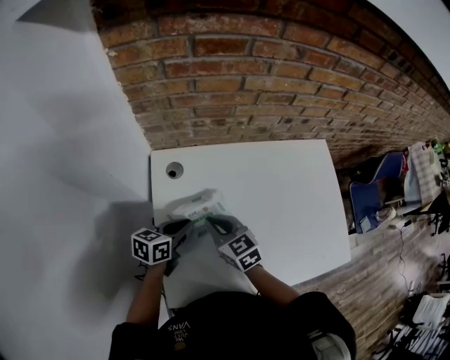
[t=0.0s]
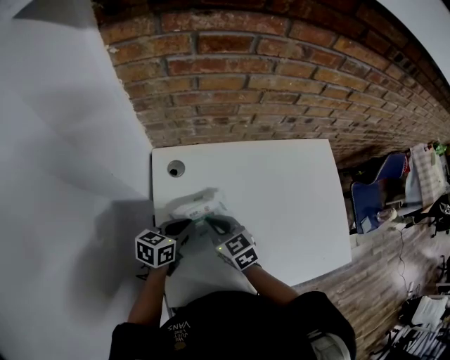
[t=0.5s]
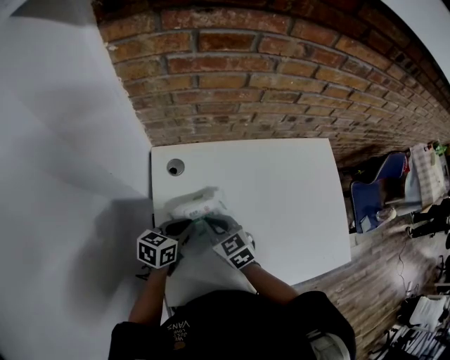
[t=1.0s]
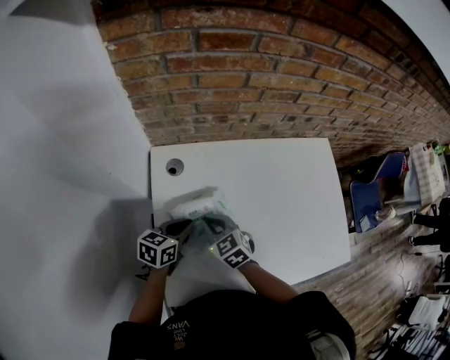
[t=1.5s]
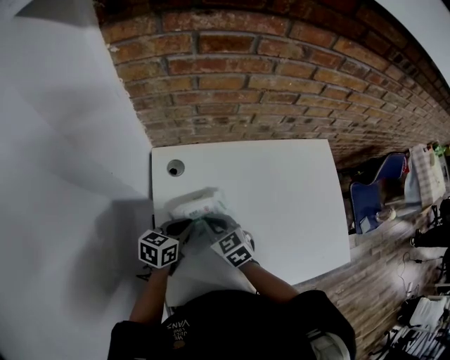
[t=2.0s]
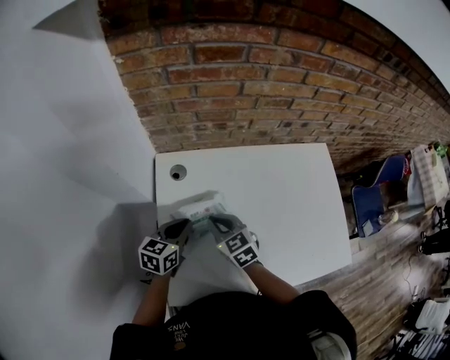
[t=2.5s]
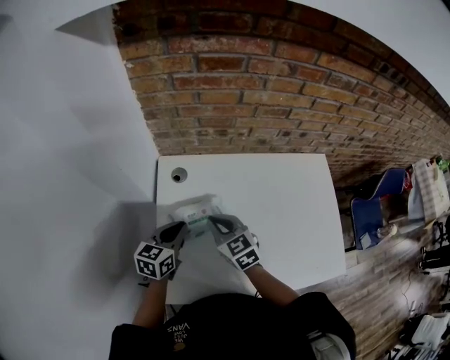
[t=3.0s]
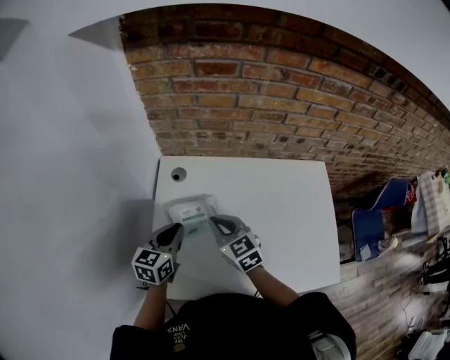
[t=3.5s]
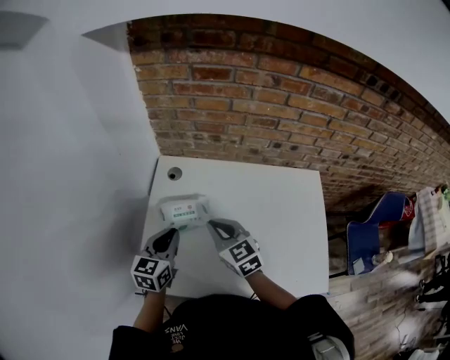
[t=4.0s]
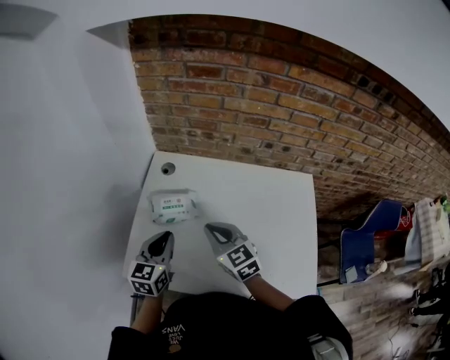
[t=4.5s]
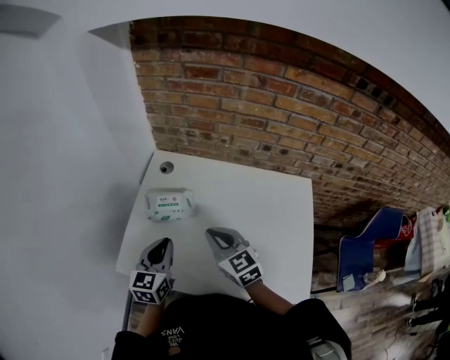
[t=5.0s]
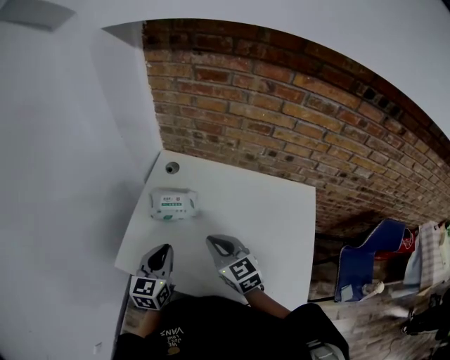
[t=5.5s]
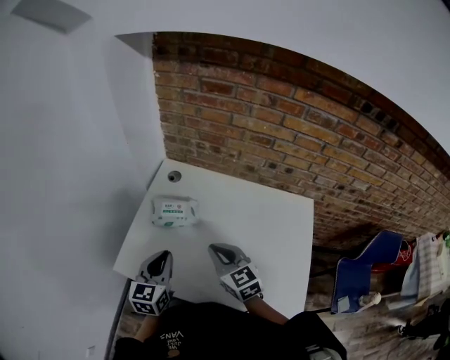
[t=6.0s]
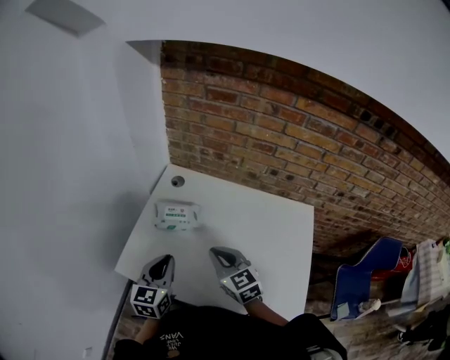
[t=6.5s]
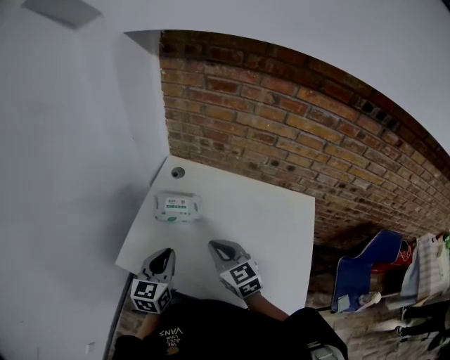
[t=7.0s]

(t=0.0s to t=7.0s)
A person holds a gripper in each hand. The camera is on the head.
t=0.0s - t=2.0s: The grippers stay close to where they were, moving slightly.
t=2.0s - t=3.5s: The left gripper heads upward, covering roughly 10 cm, and rotates about 30 degrees. Meanwhile the right gripper travels upward and to the right by roughly 10 cm.
t=3.5s - t=5.0s: The two grippers go roughly 15 cm backward and to the right. The left gripper rotates some 20 degrees.
t=5.0s - t=7.0s: The grippers stay close to where they were, moving slightly.

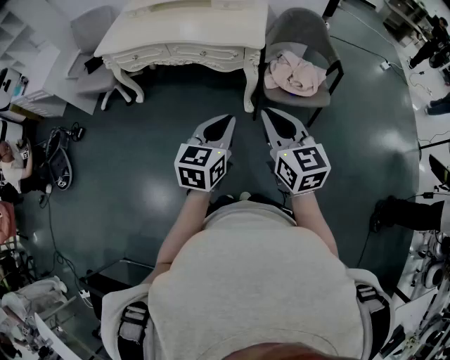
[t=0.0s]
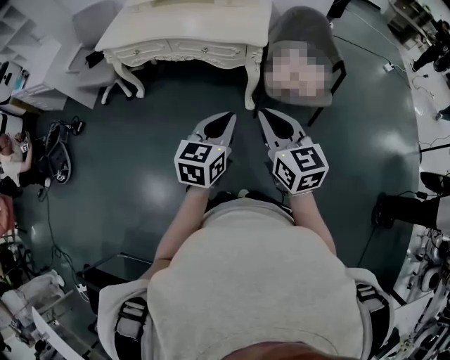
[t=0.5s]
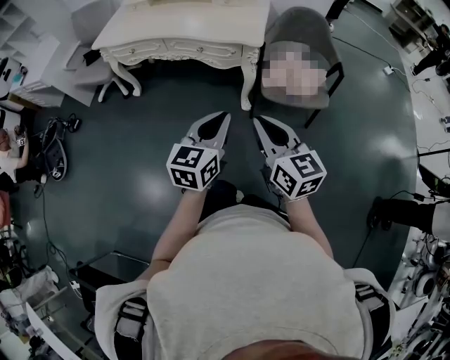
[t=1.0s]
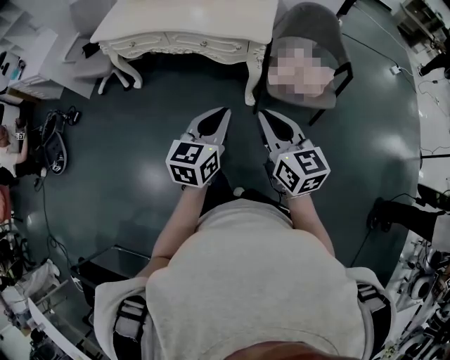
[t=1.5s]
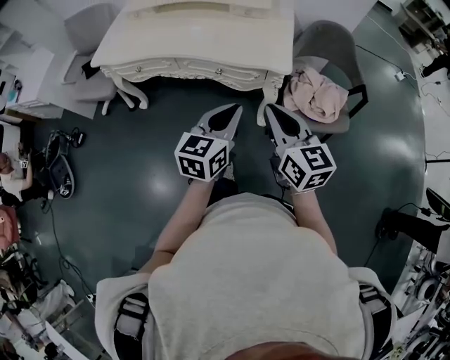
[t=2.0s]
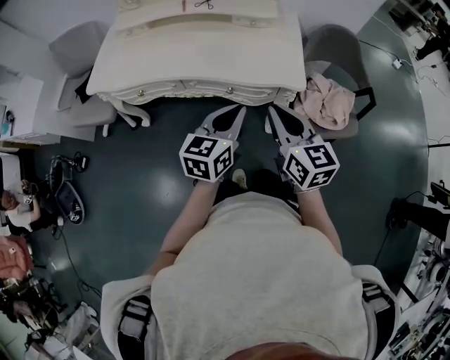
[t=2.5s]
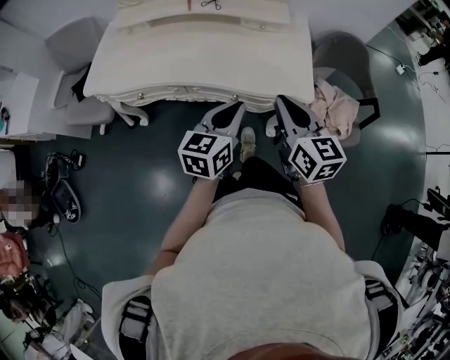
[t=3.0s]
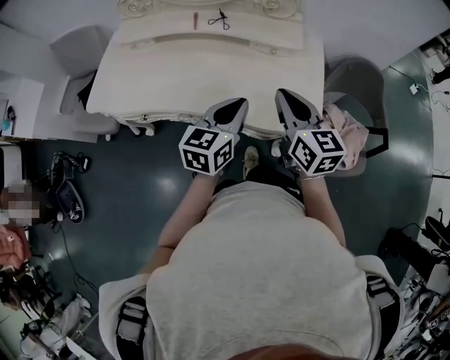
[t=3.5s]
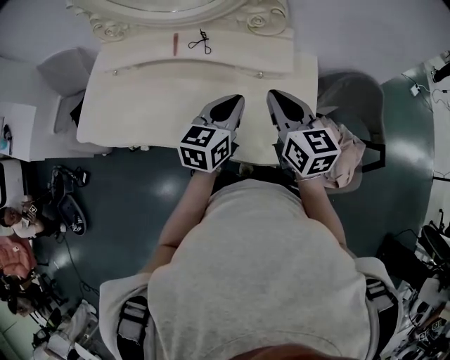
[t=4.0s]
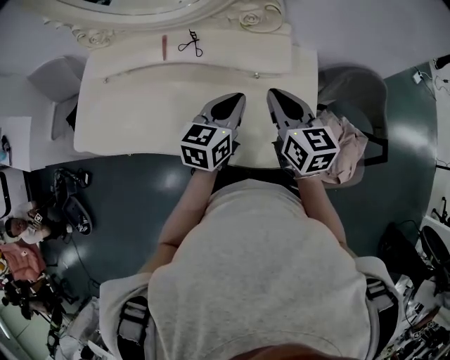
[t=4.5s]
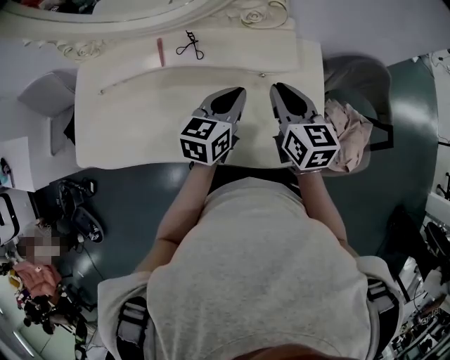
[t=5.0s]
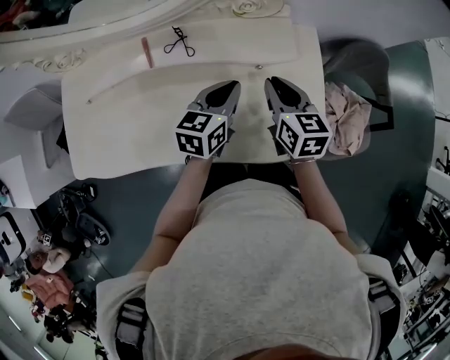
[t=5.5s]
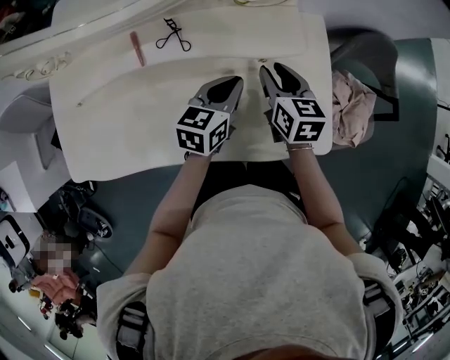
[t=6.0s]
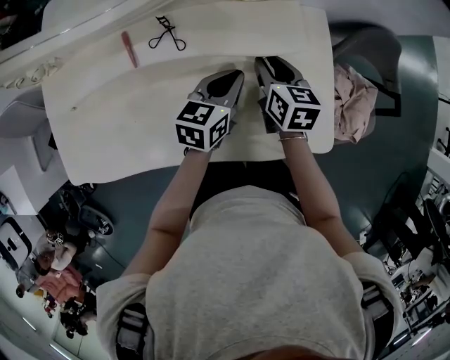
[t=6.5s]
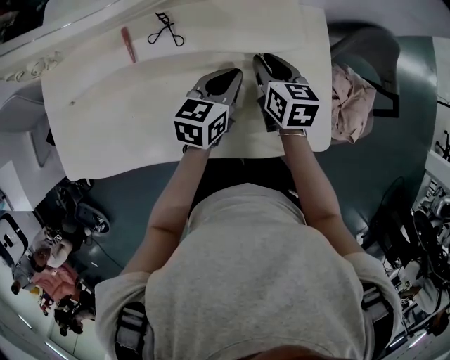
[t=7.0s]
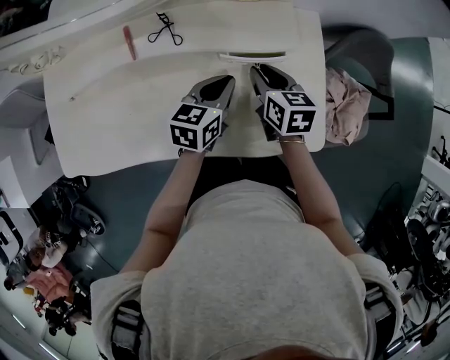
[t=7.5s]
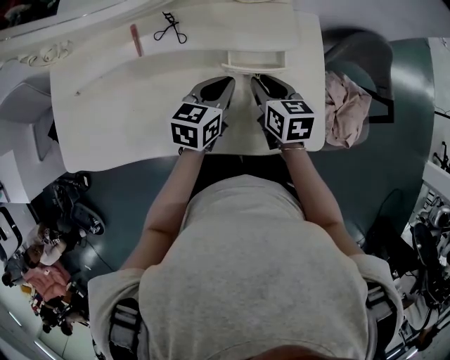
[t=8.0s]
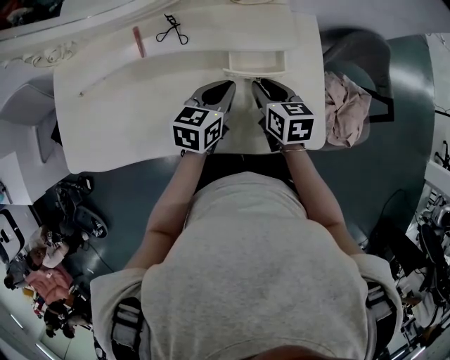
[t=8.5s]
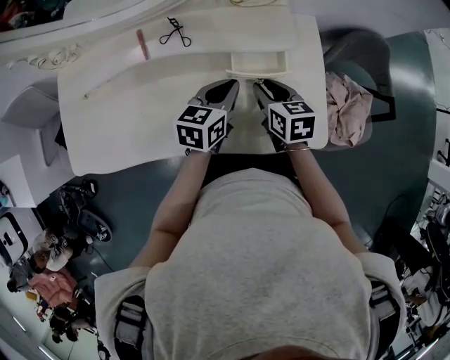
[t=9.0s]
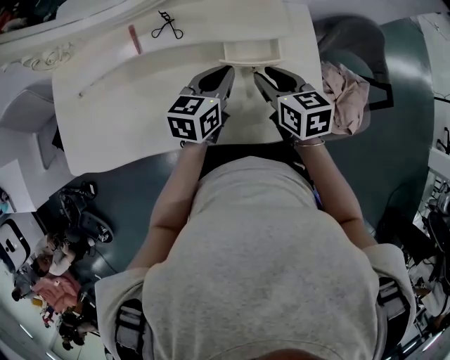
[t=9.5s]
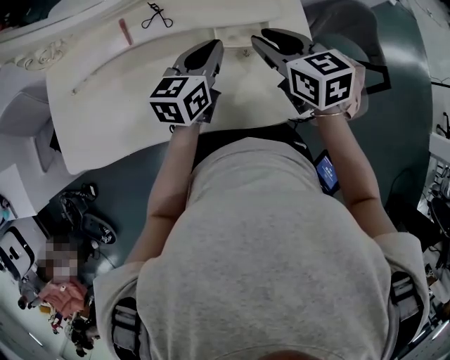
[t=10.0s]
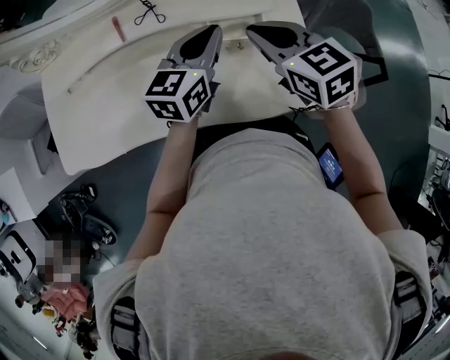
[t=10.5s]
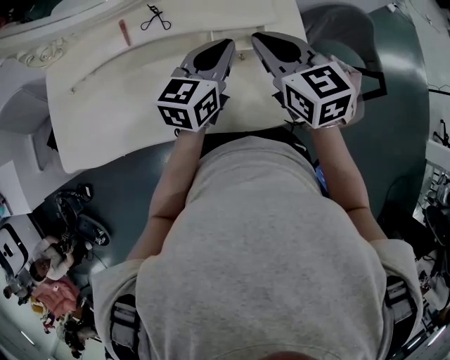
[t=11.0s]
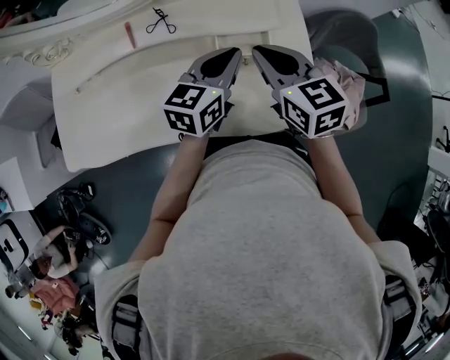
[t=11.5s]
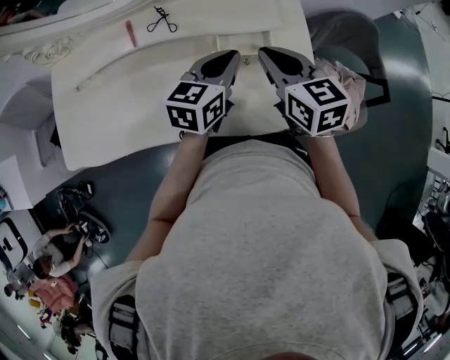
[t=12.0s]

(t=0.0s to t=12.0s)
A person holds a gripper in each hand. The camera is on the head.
t=0.0s - t=2.0s: The two grippers go roughly 20 cm forward.
t=2.0s - t=4.0s: Both grippers are carried forward, some 40 cm.
t=4.0s - t=6.0s: Both grippers move downward and forward, approximately 15 cm. The right gripper swivels about 30 degrees, and opens up; the left gripper changes its angle by roughly 20 degrees.
t=6.0s - t=8.0s: The right gripper moves approximately 5 cm.
t=8.0s - t=10.0s: The left gripper moves upward, about 5 cm. The right gripper moves upward, about 10 cm.
t=10.0s - t=12.0s: The right gripper closes up.

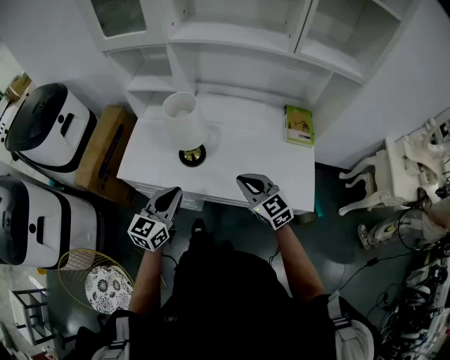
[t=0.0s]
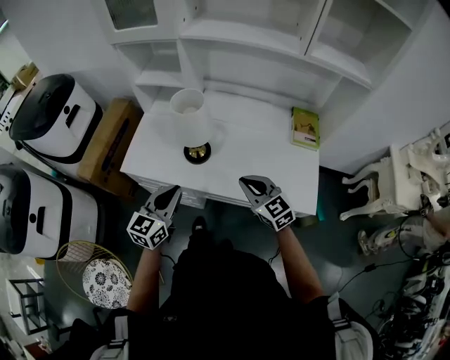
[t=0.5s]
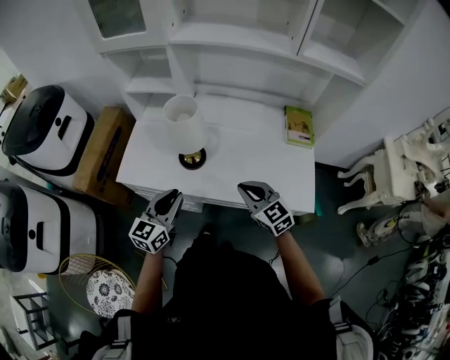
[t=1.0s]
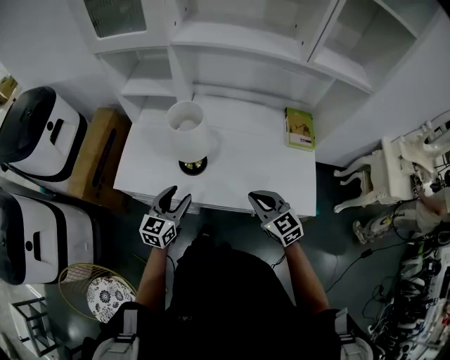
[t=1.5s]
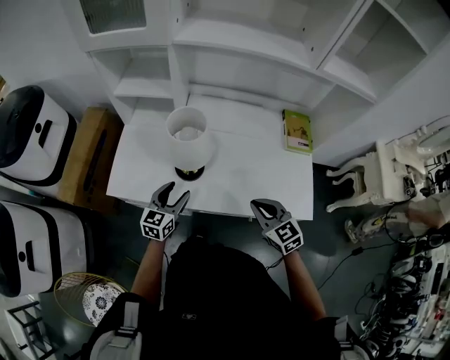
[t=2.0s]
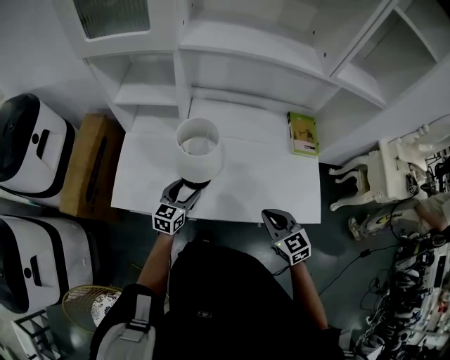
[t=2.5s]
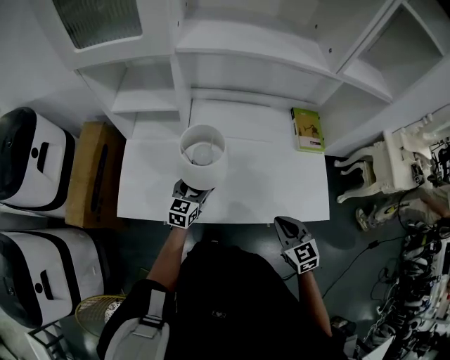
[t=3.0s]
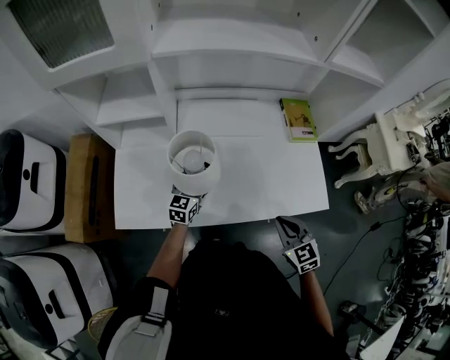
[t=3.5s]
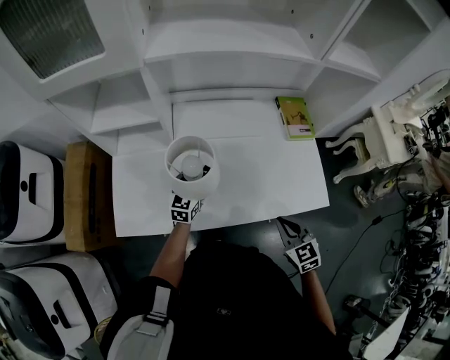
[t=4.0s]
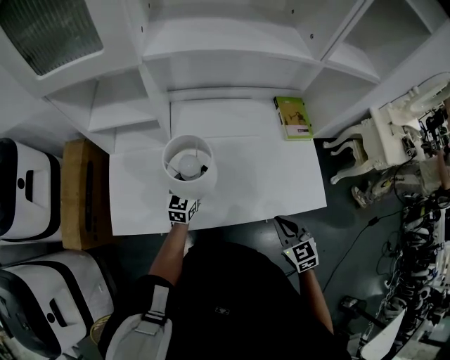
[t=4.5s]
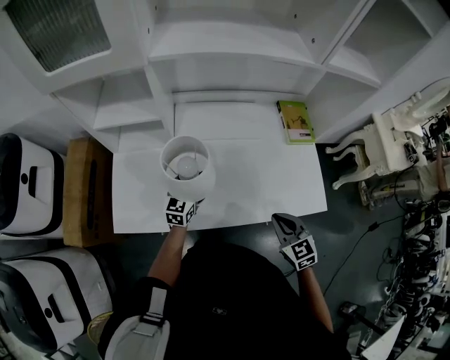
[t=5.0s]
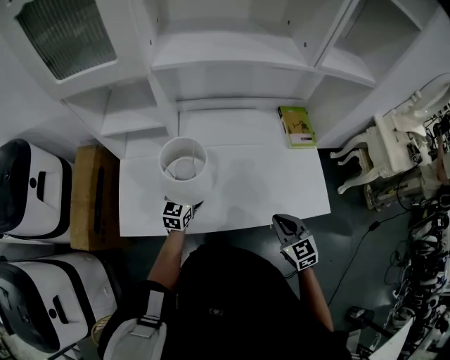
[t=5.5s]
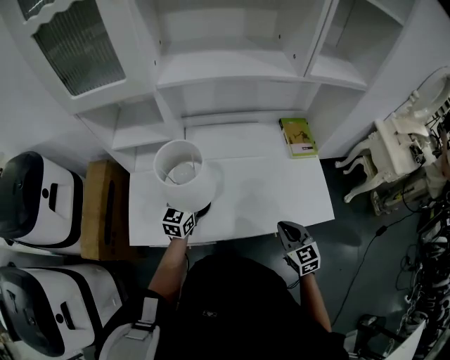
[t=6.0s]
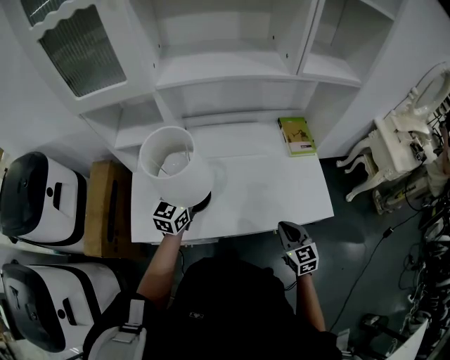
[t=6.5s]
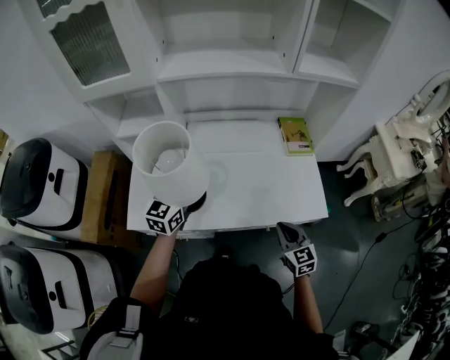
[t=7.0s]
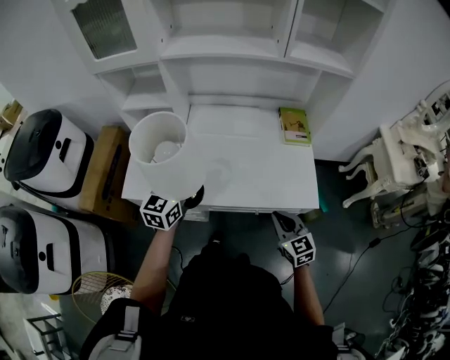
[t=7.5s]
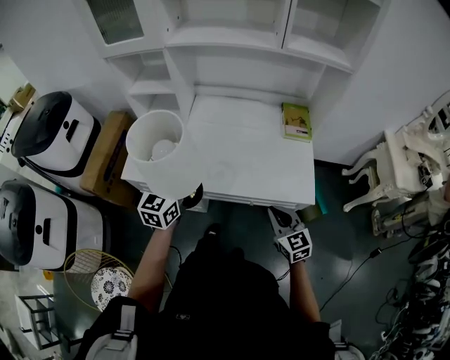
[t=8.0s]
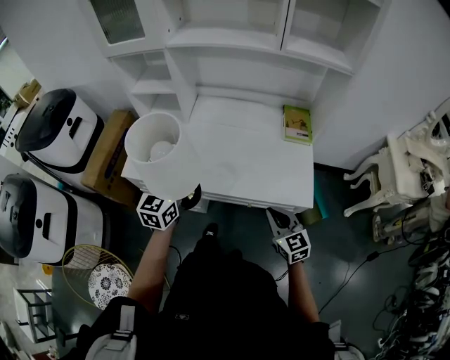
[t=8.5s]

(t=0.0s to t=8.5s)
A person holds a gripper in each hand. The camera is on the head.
t=0.0s - t=2.0s: The left gripper moves forward and downward, roughly 15 cm, and opens its fingers.
t=2.0s - t=4.0s: The right gripper moves some 5 cm, and changes its angle by approximately 20 degrees. The left gripper is displaced forward by about 15 cm.
t=4.0s - t=6.5s: The left gripper moves upward, some 20 cm, and closes its fingers.
t=6.5s - t=8.5s: The right gripper goes about 15 cm backward and to the right, and rotates approximately 20 degrees, while the left gripper shifts some 20 cm backward.
